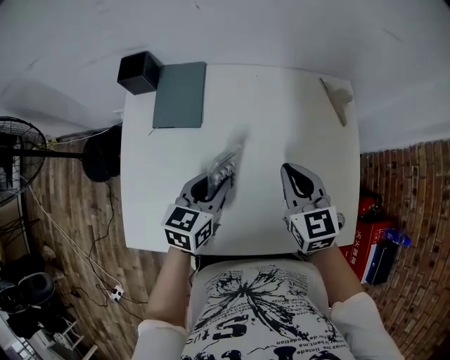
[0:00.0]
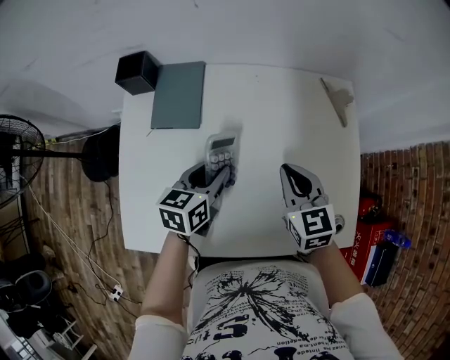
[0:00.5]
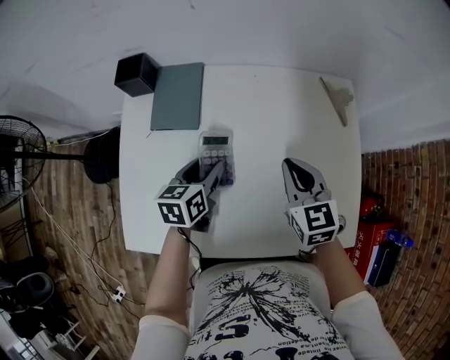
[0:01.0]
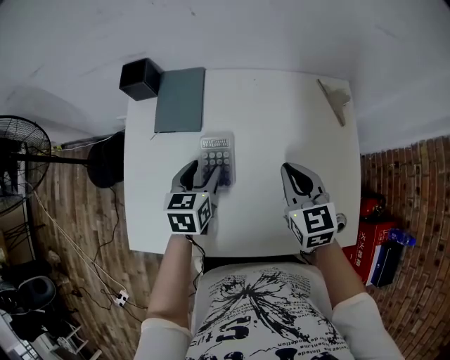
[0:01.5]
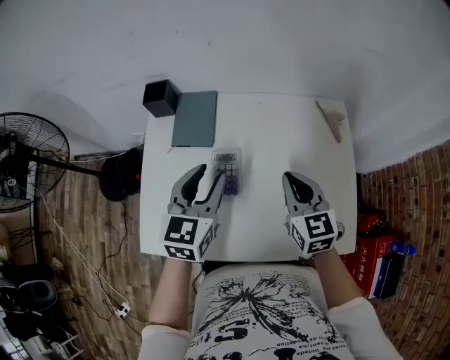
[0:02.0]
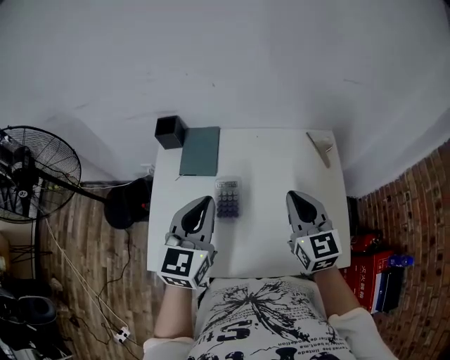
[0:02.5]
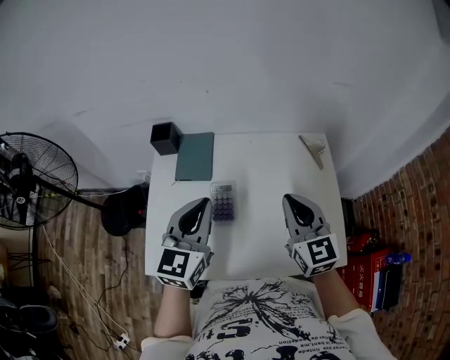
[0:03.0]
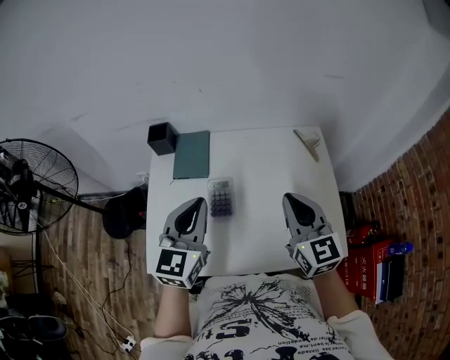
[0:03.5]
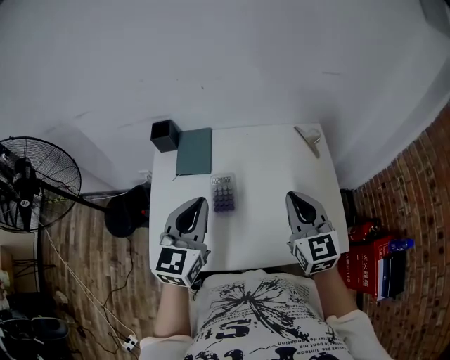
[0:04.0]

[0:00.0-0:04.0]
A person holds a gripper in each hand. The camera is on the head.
0:00.0 to 0:02.0: The left gripper heads upward, covering about 15 cm, and rotates roughly 20 degrees, while the right gripper is displaced upward by about 5 cm.
0:02.0 to 0:04.0: The grippers both shift upward and backward by about 15 cm. The left gripper closes.

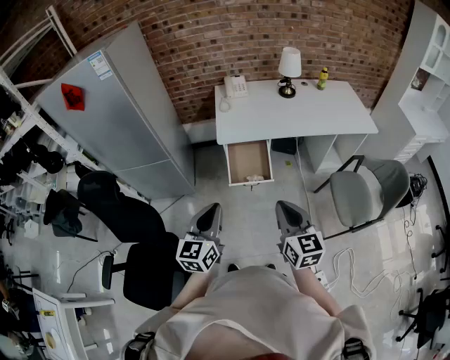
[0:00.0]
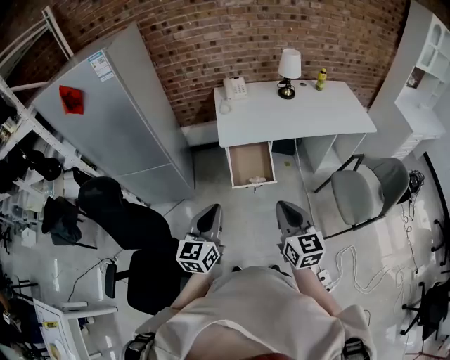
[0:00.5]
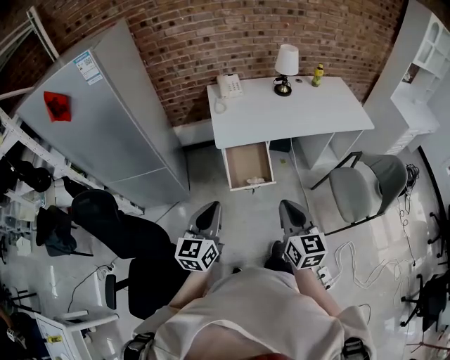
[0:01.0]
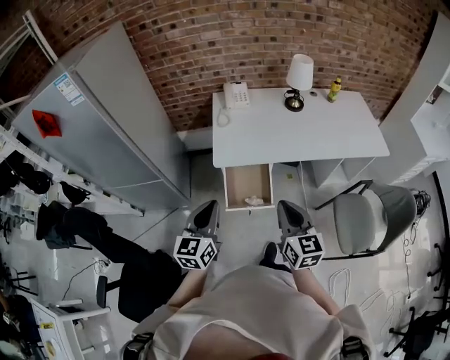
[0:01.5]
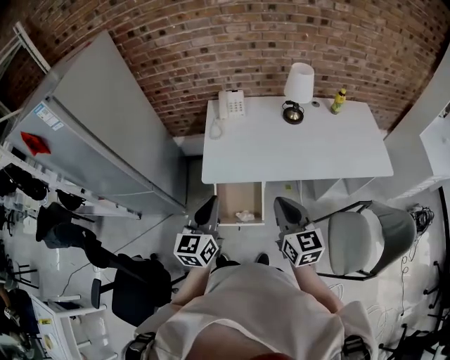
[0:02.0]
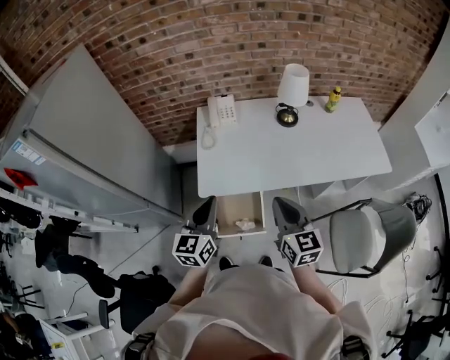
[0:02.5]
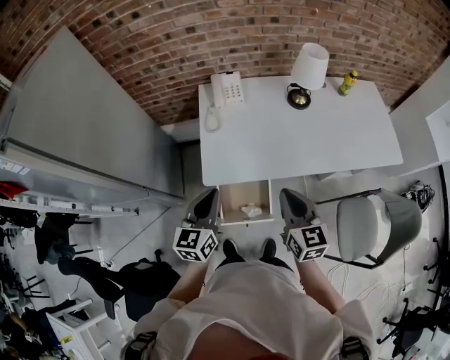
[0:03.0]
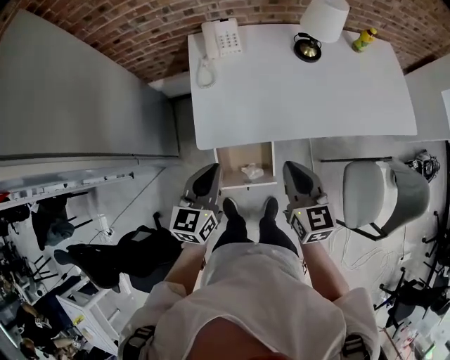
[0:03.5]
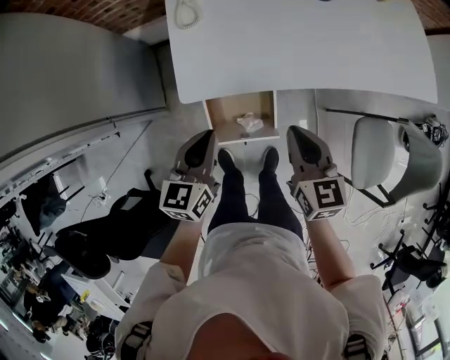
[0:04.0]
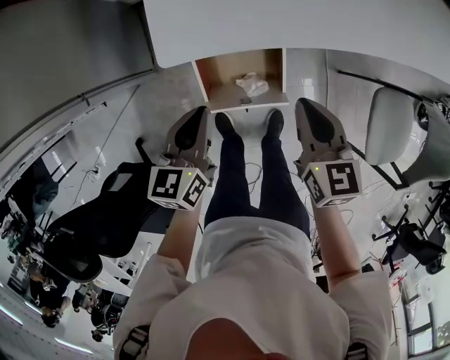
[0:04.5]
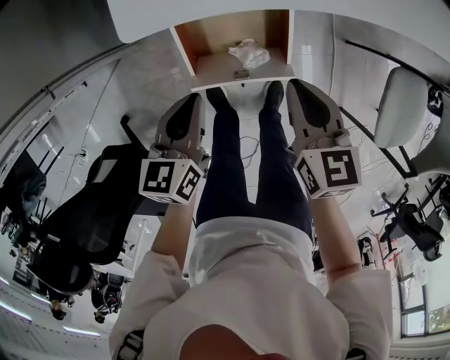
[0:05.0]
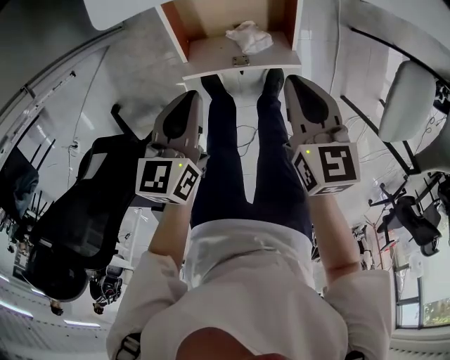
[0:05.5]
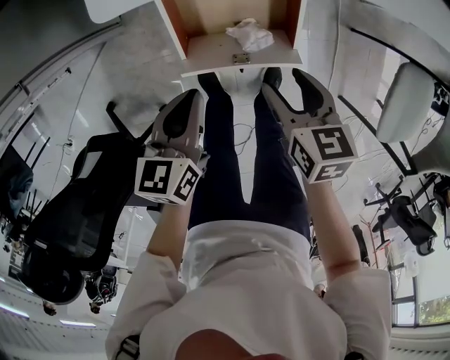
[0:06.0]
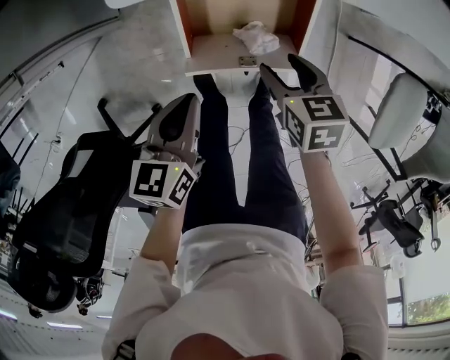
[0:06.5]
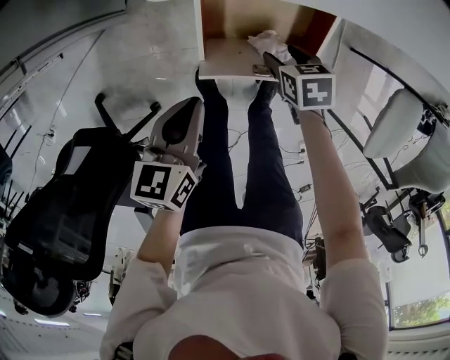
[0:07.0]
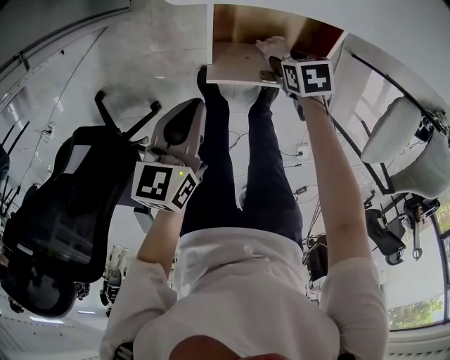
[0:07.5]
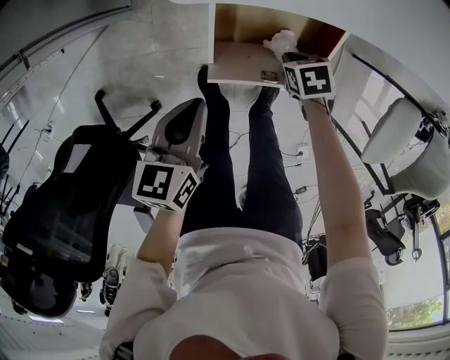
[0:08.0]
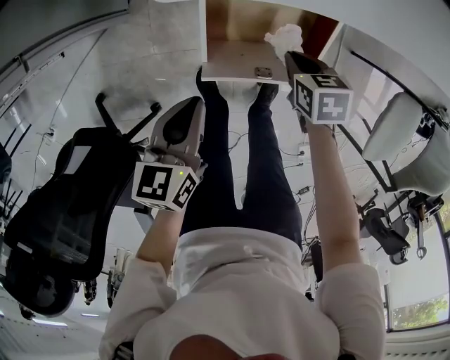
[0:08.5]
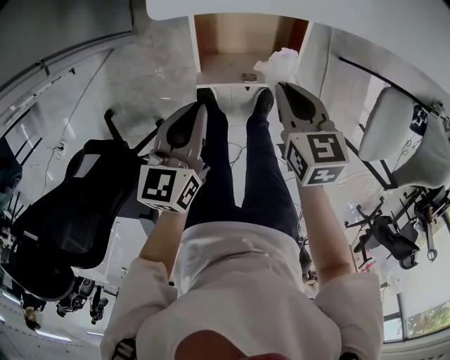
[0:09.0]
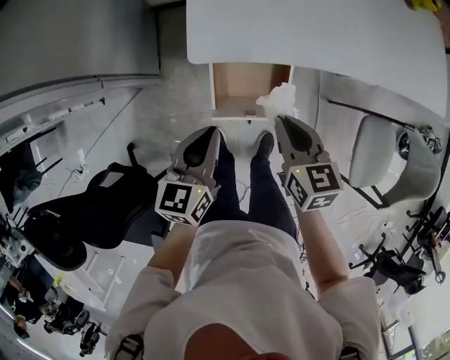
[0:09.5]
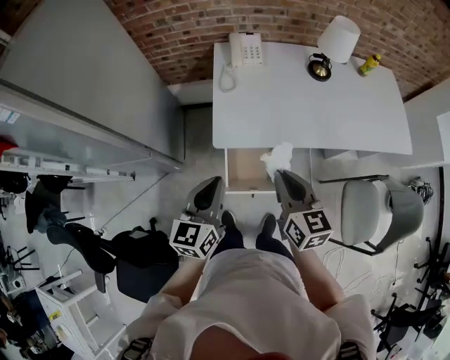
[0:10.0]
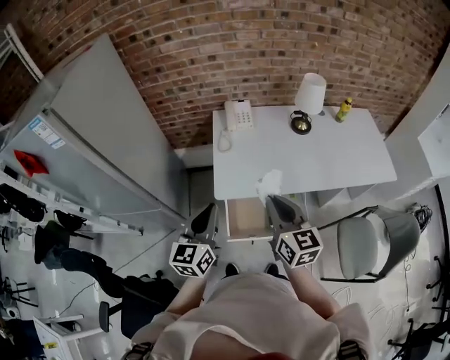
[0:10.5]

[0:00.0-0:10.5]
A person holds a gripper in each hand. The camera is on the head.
0:00.0 to 0:02.0: The grippers both shift forward by some 30 cm.
0:02.0 to 0:04.0: Both grippers move downward and forward, some 20 cm. The left gripper rotates some 20 degrees.
0:04.0 to 0:06.5: The right gripper moves downward, some 35 cm, swivels about 30 degrees, and opens, while the left gripper is displaced downward and backward by about 25 cm, and turns by some 20 degrees.
0:06.5 to 0:08.5: The right gripper travels downward by about 5 cm, and closes.
0:08.5 to 0:10.5: The two grippers go roughly 50 cm upward. The right gripper tips its fingers upward by roughly 60 degrees; the left gripper tips its fingers upward by approximately 30 degrees.

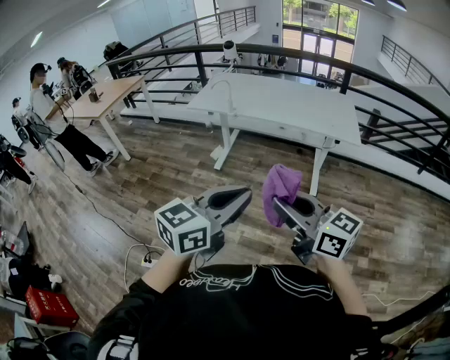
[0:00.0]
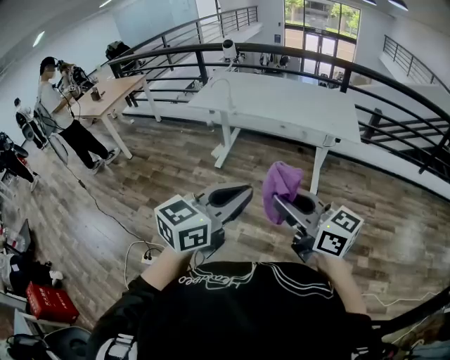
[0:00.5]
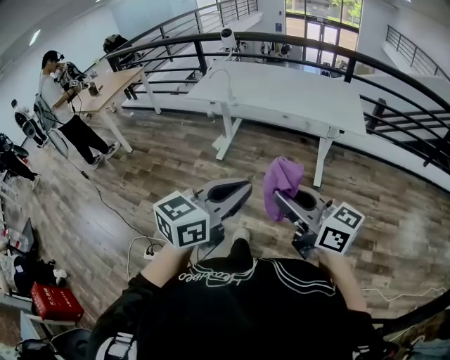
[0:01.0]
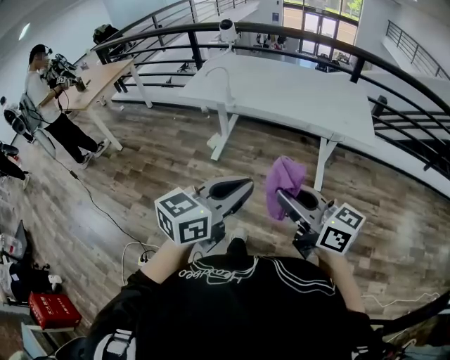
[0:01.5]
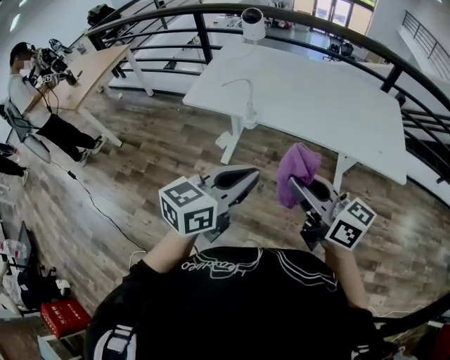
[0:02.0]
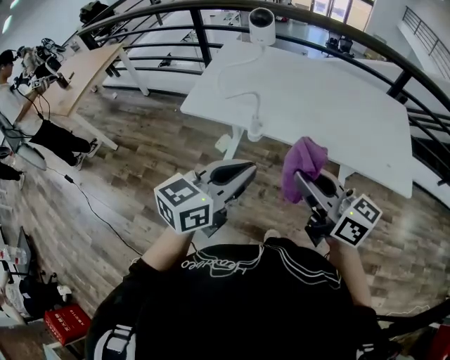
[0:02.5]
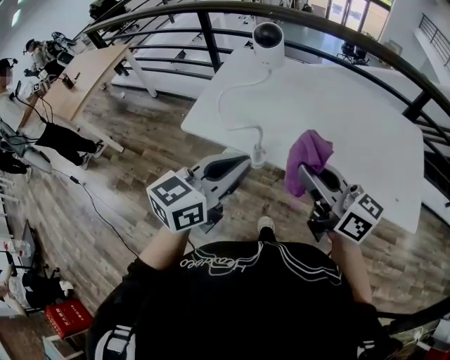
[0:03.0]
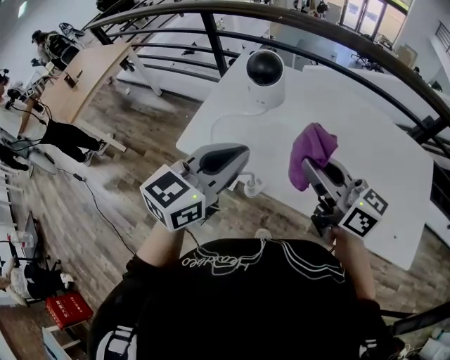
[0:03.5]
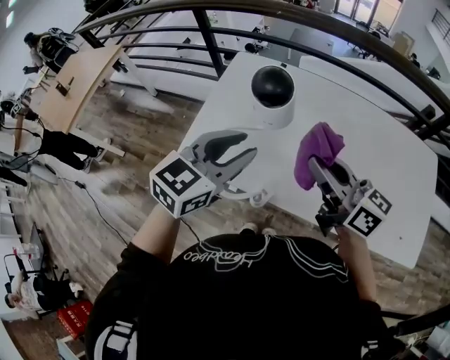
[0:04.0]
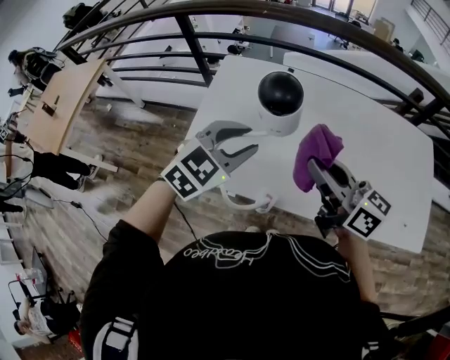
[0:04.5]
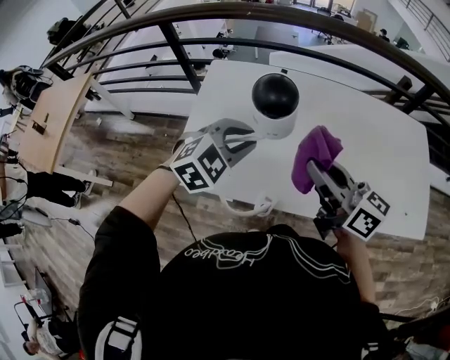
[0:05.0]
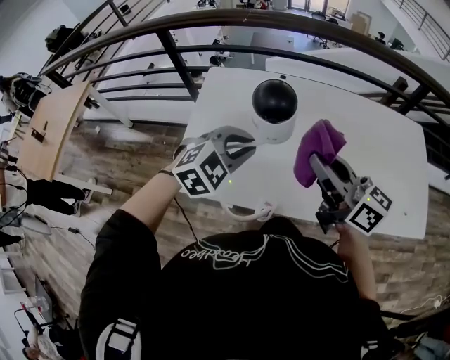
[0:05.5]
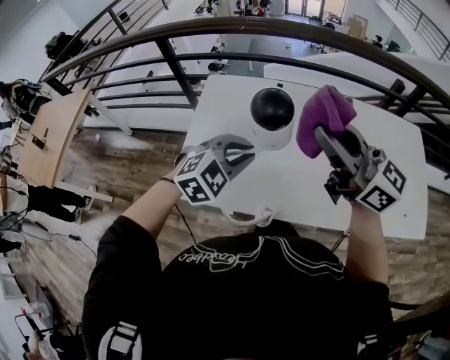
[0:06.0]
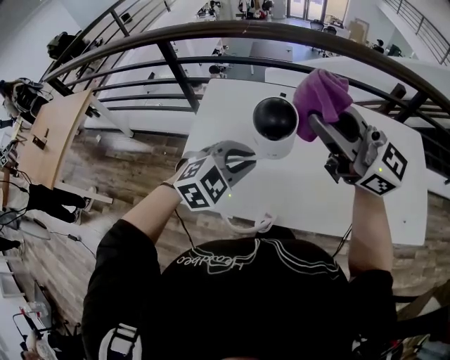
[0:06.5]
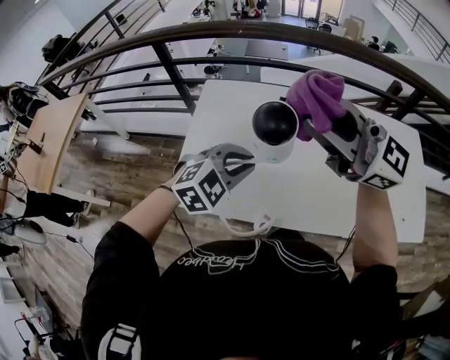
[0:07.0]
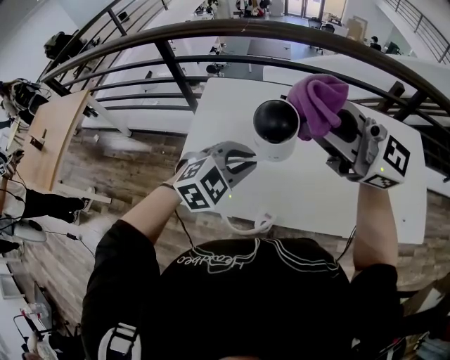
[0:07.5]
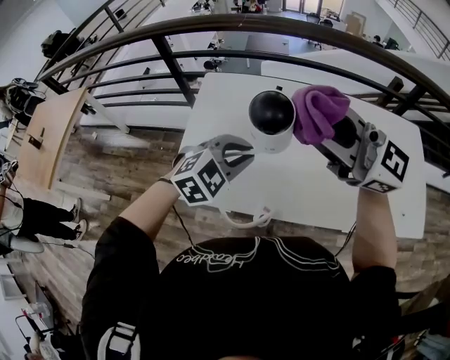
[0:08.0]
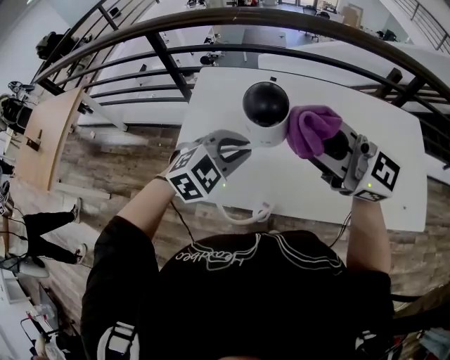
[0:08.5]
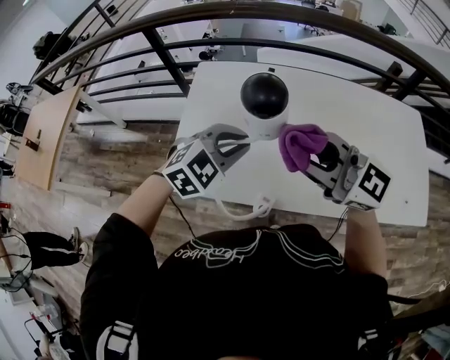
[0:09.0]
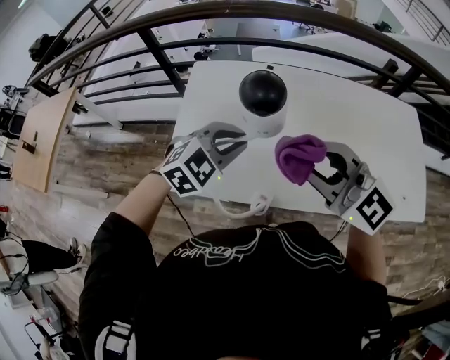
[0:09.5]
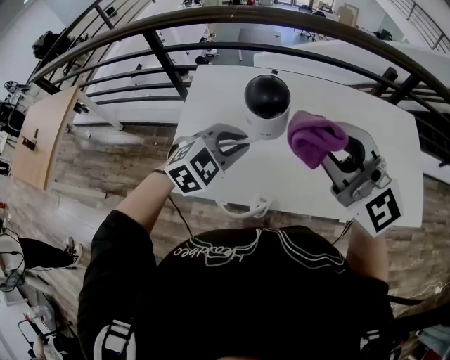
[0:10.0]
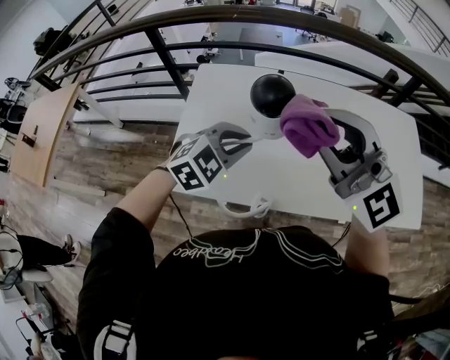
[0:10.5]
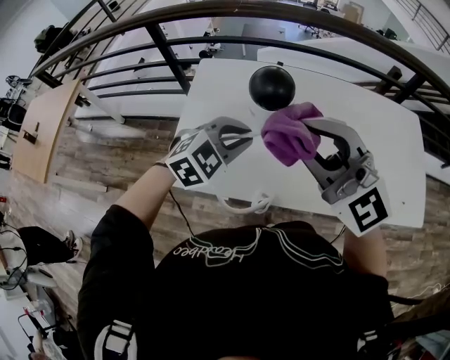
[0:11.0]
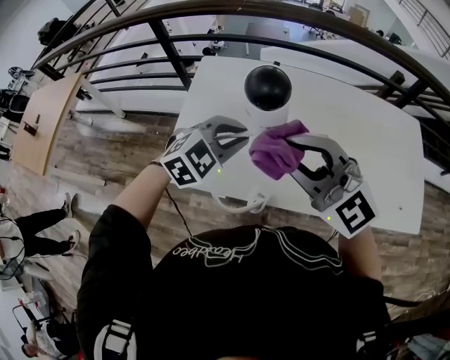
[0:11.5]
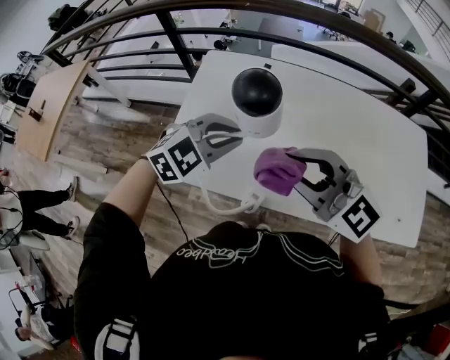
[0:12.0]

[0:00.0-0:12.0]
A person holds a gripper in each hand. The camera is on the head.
0:00.0 to 0:02.0: The pair of grippers is taken forward, roughly 50 cm.
0:02.0 to 0:04.0: The pair of grippers is taken forward, about 50 cm. The left gripper rotates about 20 degrees, and opens.
0:04.0 to 0:06.0: The right gripper heads upward, covering about 10 cm, and rotates about 20 degrees. Meanwhile the left gripper is displaced downward and forward by roughly 10 cm, and rotates approximately 50 degrees.
0:06.0 to 0:08.0: The right gripper rotates about 30 degrees.
0:08.0 to 0:10.0: The right gripper moves roughly 10 cm downward and comes back, and changes its angle by some 30 degrees.
0:10.0 to 0:12.0: The right gripper heads downward, covering some 10 cm, and turns by some 20 degrees.
